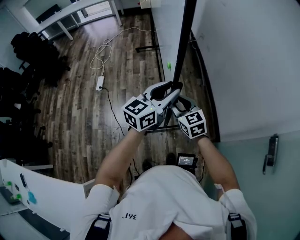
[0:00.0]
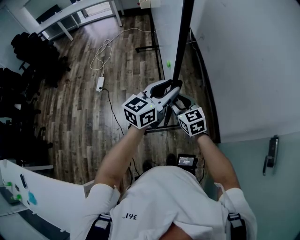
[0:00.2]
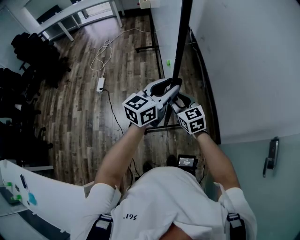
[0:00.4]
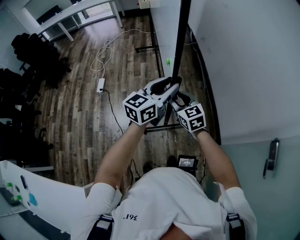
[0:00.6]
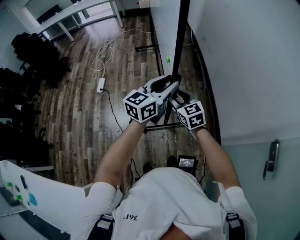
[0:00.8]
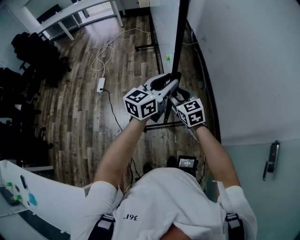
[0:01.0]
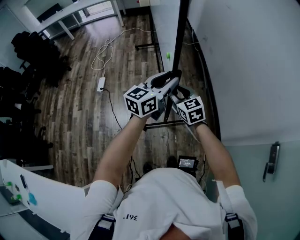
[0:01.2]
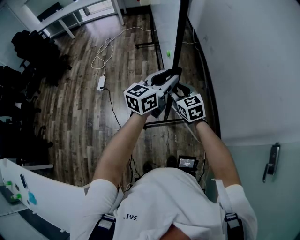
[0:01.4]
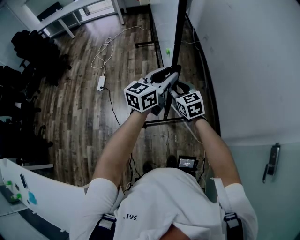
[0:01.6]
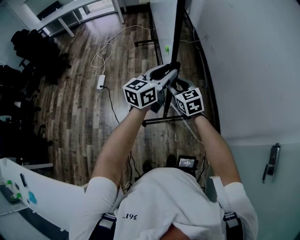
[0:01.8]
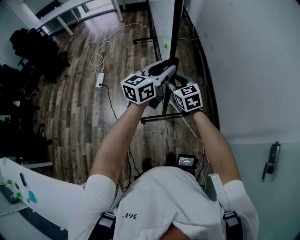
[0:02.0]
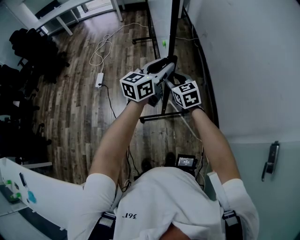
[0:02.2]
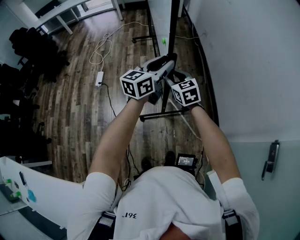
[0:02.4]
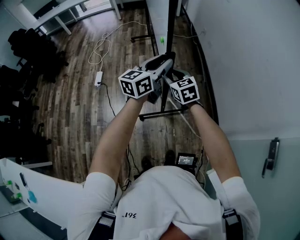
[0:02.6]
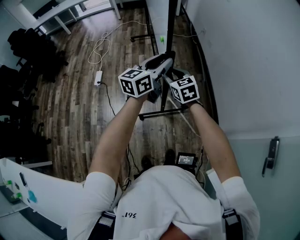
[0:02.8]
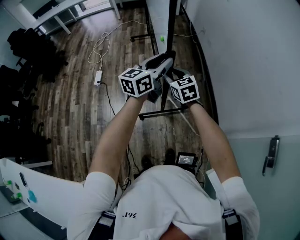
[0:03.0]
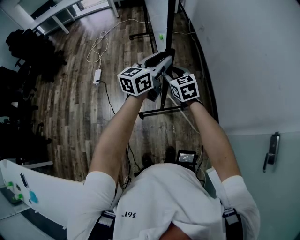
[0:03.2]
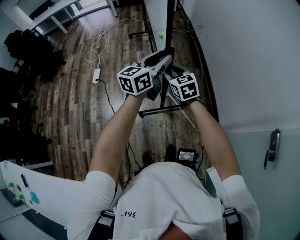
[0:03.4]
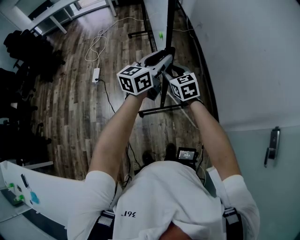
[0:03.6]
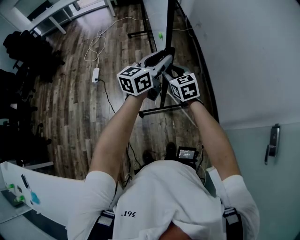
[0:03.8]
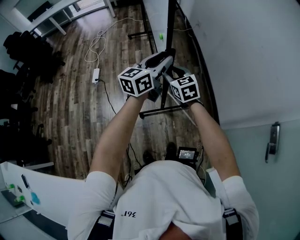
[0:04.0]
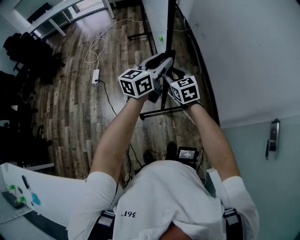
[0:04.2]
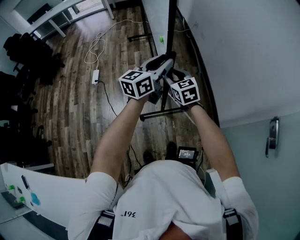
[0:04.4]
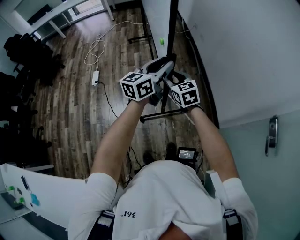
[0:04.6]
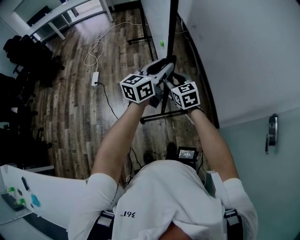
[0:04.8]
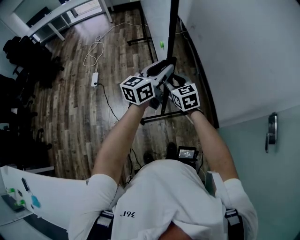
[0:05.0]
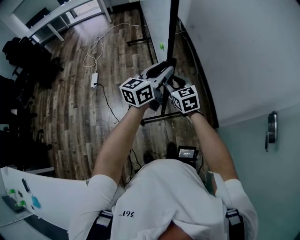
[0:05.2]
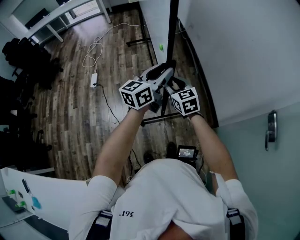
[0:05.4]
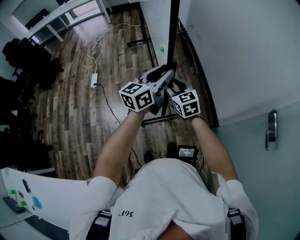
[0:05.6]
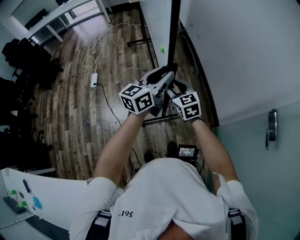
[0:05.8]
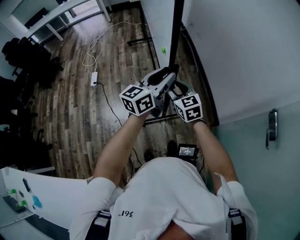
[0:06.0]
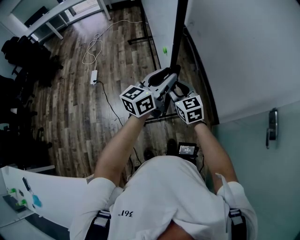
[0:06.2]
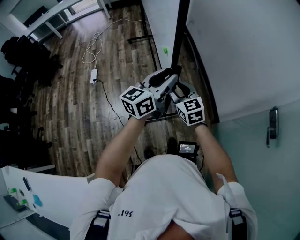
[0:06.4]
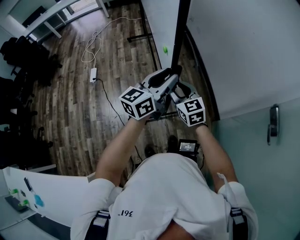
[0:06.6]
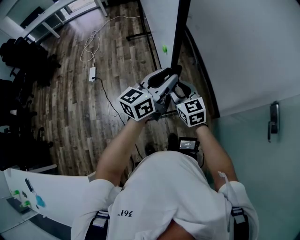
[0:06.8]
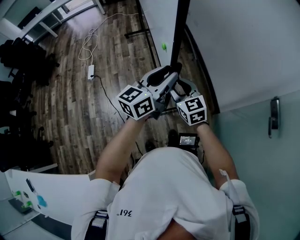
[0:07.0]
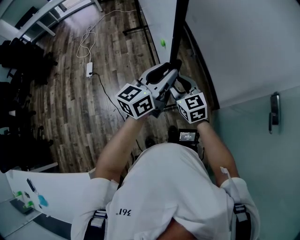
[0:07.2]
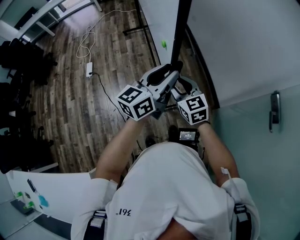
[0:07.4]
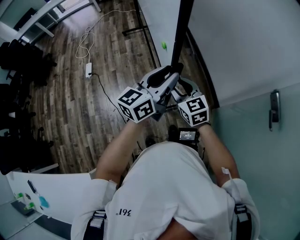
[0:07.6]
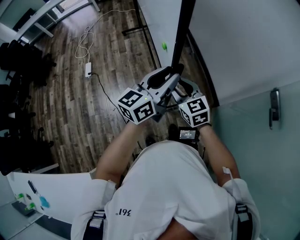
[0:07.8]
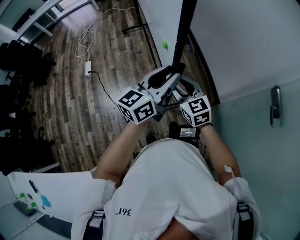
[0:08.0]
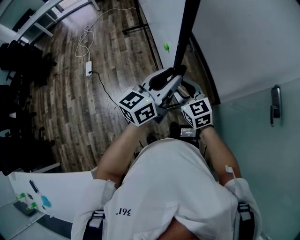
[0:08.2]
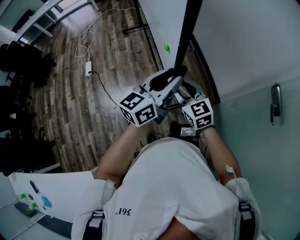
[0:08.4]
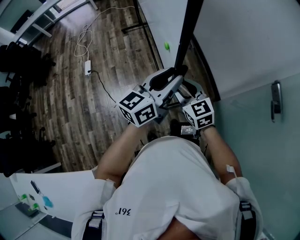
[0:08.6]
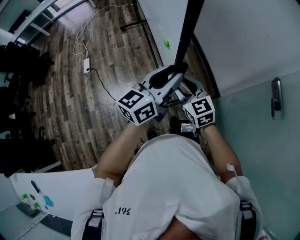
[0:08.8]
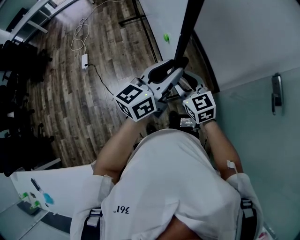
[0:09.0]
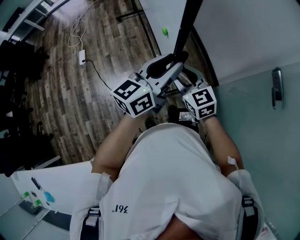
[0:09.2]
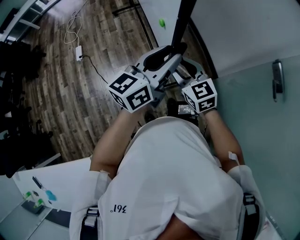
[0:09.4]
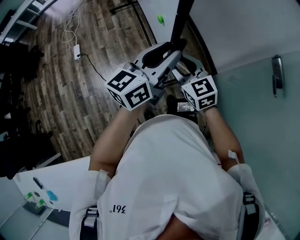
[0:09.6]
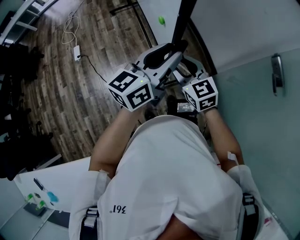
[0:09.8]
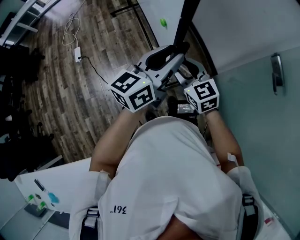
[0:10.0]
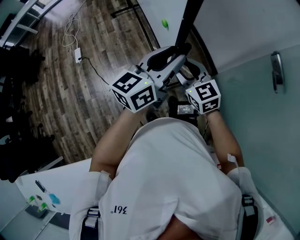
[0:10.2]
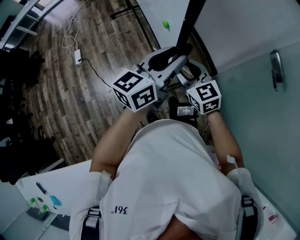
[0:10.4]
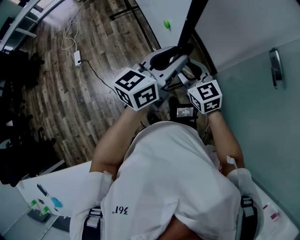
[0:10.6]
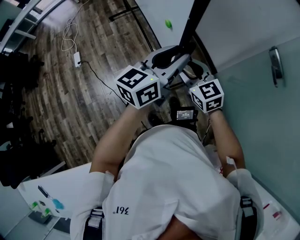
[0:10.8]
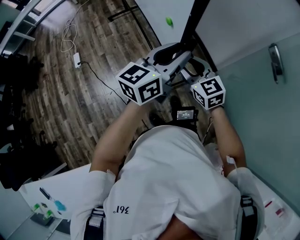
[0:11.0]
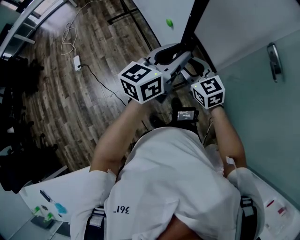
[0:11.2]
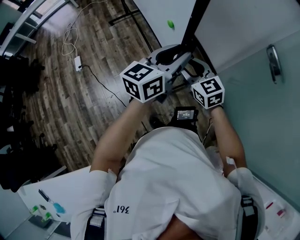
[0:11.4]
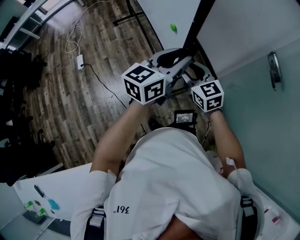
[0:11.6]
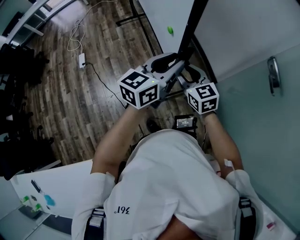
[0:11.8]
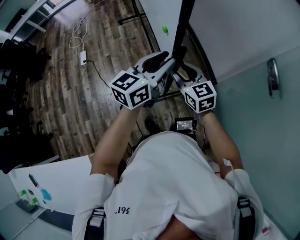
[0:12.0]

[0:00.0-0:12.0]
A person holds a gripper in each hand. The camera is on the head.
0:00.0 to 0:01.6: The grippers both shift forward by about 10 cm.
0:01.6 to 0:03.0: The grippers stay close to where they were, moving slightly.
0:03.0 to 0:04.4: Both grippers move backward, approximately 5 cm.
0:04.4 to 0:06.0: The two grippers go approximately 10 cm backward.
0:06.0 to 0:07.6: The two grippers go approximately 5 cm backward.
0:07.6 to 0:09.0: Both grippers travel together backward, roughly 5 cm.
0:09.0 to 0:12.0: The grippers make only small movements.

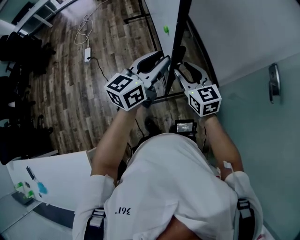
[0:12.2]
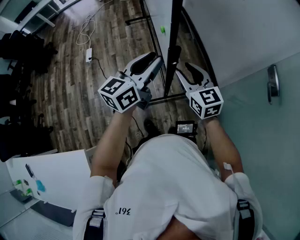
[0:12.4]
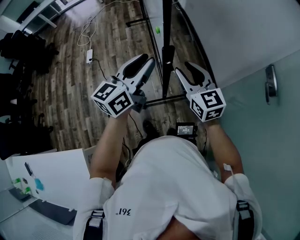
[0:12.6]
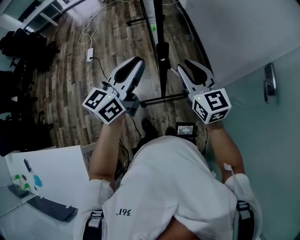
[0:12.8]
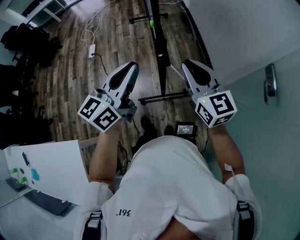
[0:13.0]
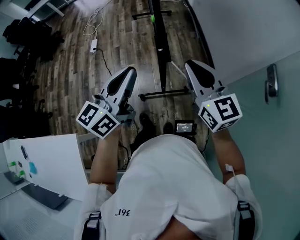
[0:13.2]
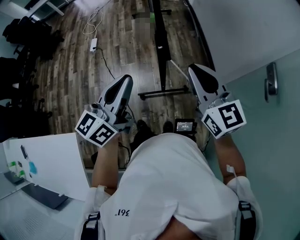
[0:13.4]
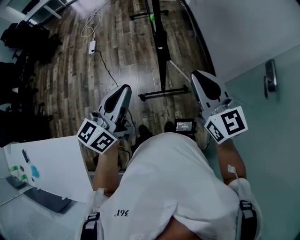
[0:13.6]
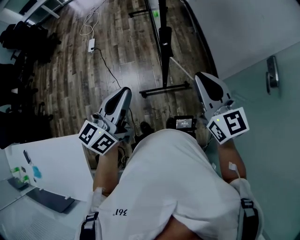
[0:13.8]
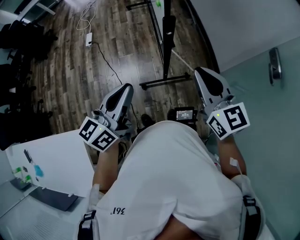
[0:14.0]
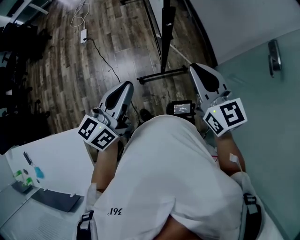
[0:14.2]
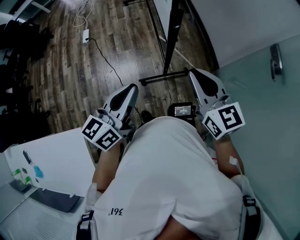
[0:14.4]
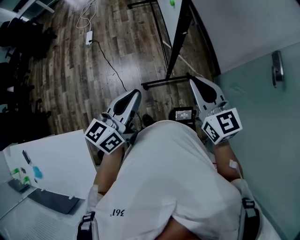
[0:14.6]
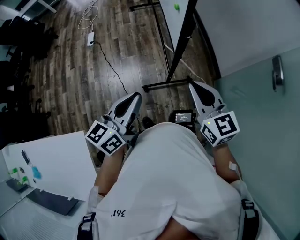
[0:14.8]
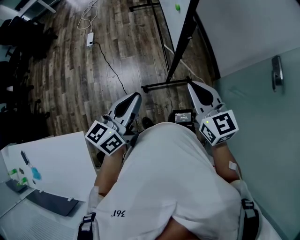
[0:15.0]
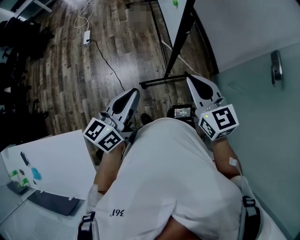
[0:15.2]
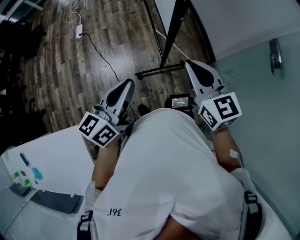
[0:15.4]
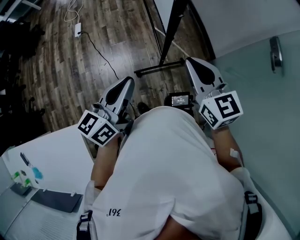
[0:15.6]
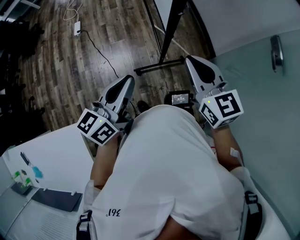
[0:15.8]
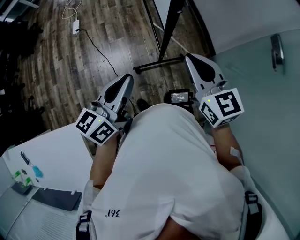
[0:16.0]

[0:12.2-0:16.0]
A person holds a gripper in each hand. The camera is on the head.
0:12.2 to 0:13.4: The right gripper is displaced upward, backward and to the right by about 15 cm, and closes up, while the left gripper travels backward by about 15 cm, and closes its fingers.
0:13.4 to 0:14.8: The two grippers go some 15 cm to the left, downward and backward.
0:14.8 to 0:16.0: There are only small adjustments of the grippers.

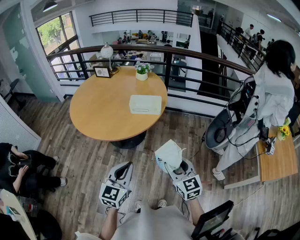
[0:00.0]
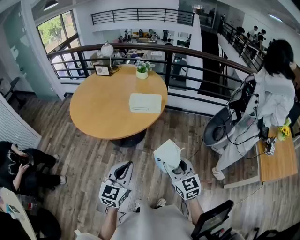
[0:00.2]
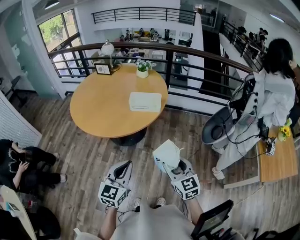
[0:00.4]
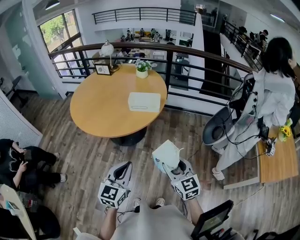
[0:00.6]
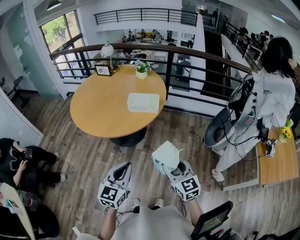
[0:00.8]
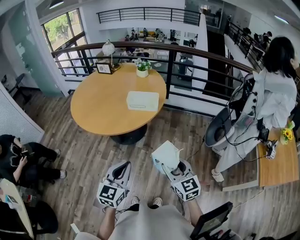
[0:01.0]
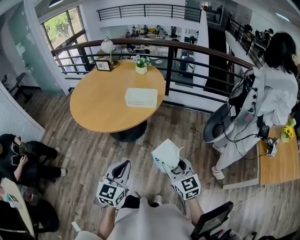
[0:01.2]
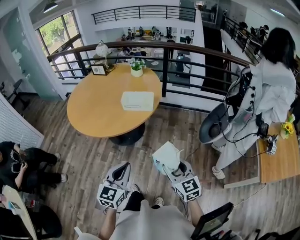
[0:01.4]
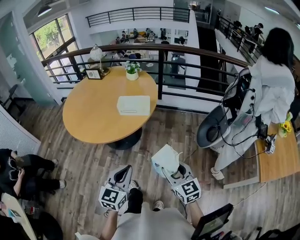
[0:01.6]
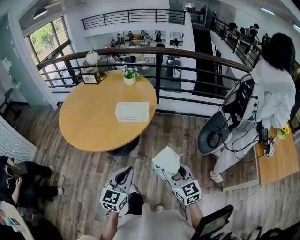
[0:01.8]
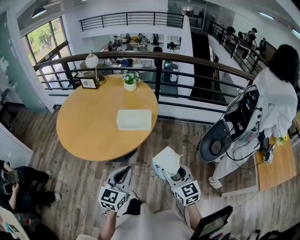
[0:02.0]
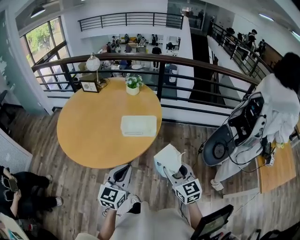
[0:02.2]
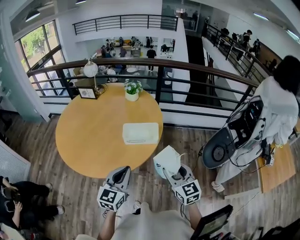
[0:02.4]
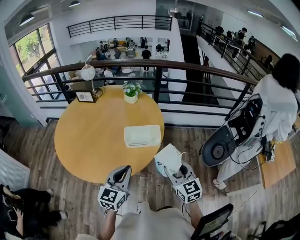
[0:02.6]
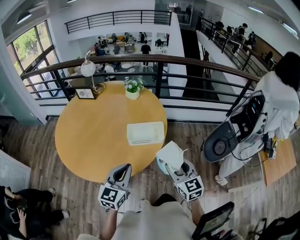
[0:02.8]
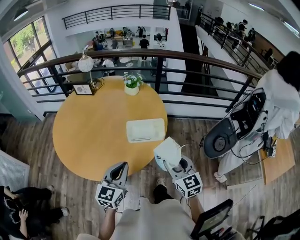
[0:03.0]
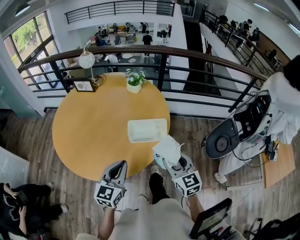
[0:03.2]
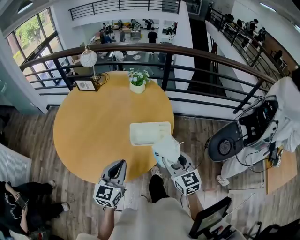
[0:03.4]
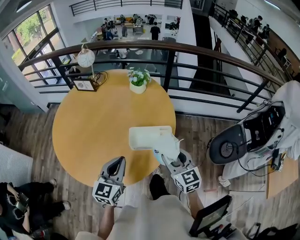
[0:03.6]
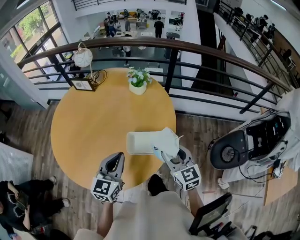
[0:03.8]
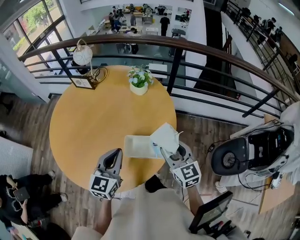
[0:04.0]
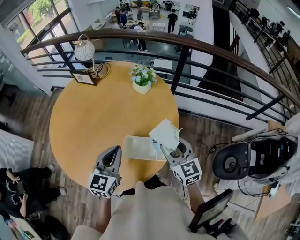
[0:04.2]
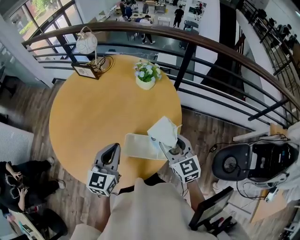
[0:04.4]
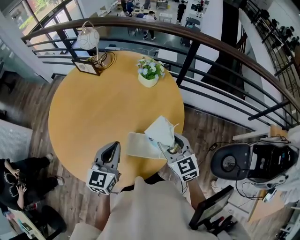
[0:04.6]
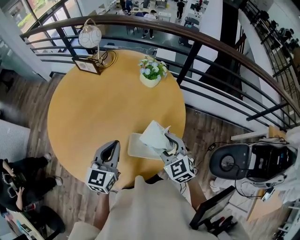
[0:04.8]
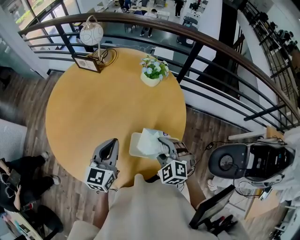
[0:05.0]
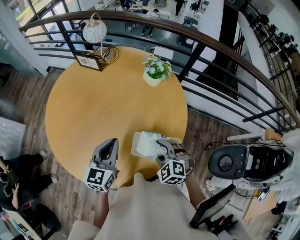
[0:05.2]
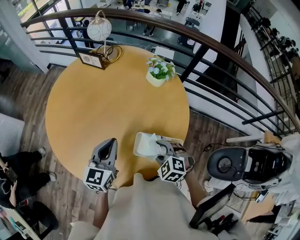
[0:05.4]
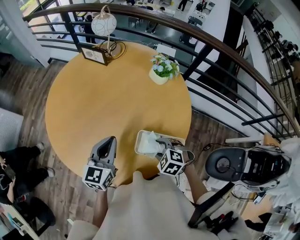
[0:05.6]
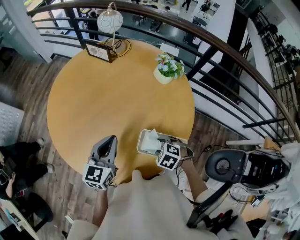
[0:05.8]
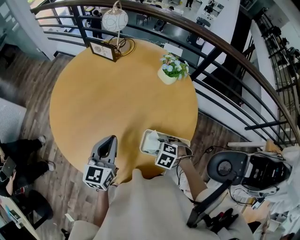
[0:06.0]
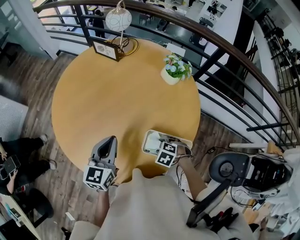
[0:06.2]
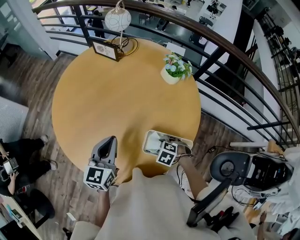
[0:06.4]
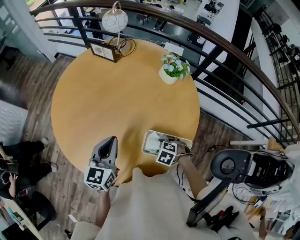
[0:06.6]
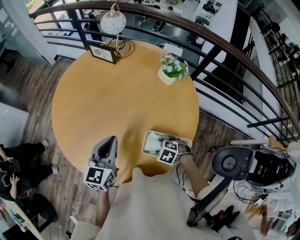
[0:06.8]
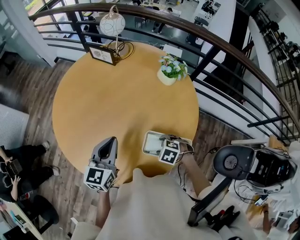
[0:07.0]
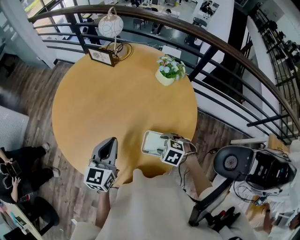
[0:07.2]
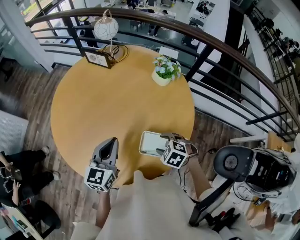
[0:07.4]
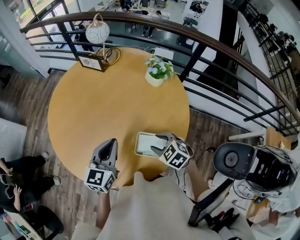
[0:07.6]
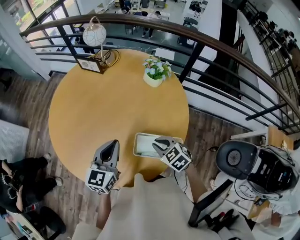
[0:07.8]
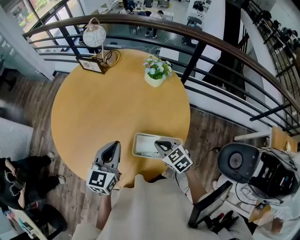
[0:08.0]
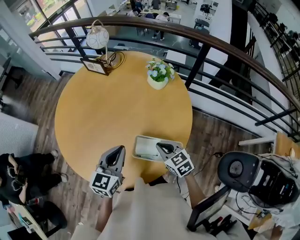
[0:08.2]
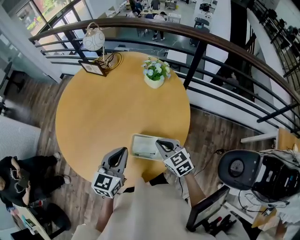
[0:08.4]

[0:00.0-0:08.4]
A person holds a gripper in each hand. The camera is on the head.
0:00.0 to 0:01.4: The grippers both shift to the right by about 5 cm.
0:01.4 to 0:02.8: Both grippers move forward and to the left, some 25 cm.
0:02.8 to 0:04.2: The two grippers go roughly 20 cm forward.
0:04.2 to 0:05.6: The right gripper shifts approximately 15 cm downward and to the left, and tips its fingers downward by roughly 50 degrees; the left gripper goes roughly 10 cm to the left.
0:05.6 to 0:07.0: The right gripper travels downward by roughly 5 cm.
0:07.0 to 0:08.4: The right gripper shifts some 10 cm upward, tips its fingers upward by approximately 40 degrees, and closes. The left gripper changes place by some 10 cm.
